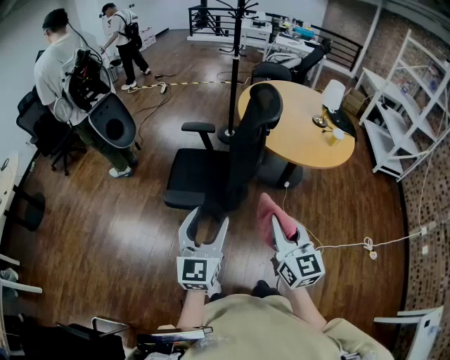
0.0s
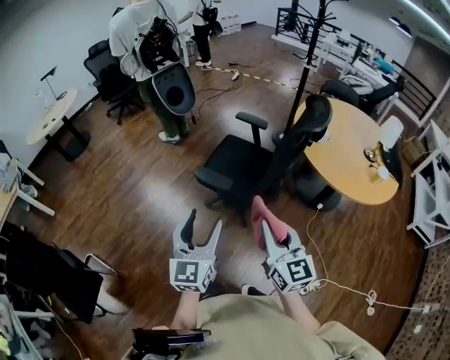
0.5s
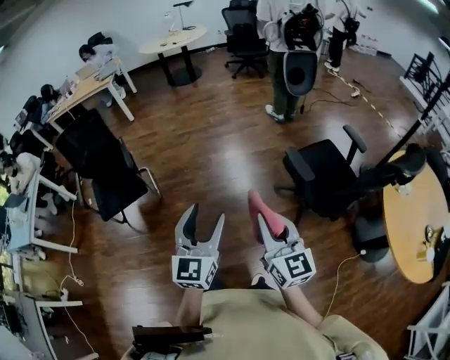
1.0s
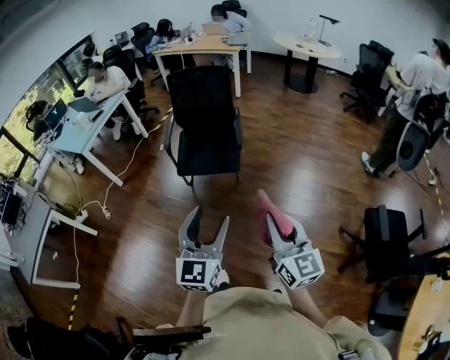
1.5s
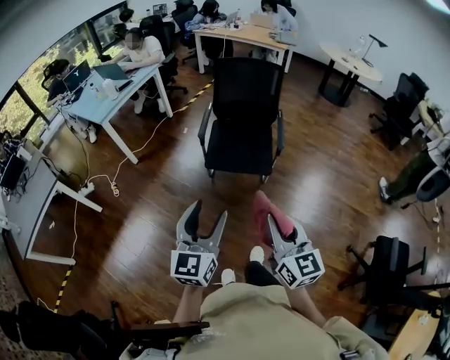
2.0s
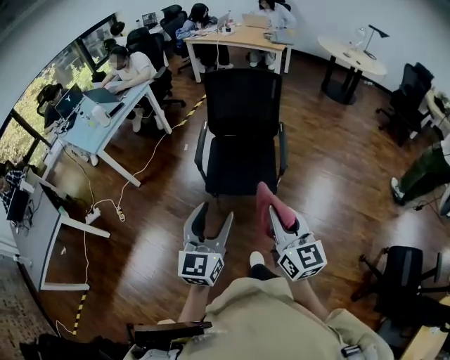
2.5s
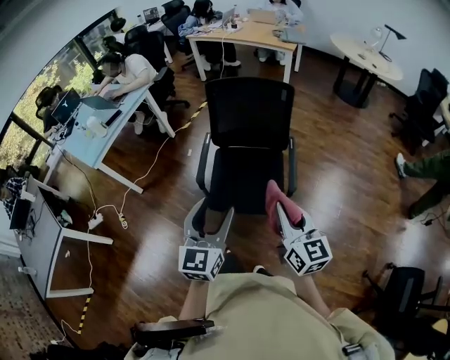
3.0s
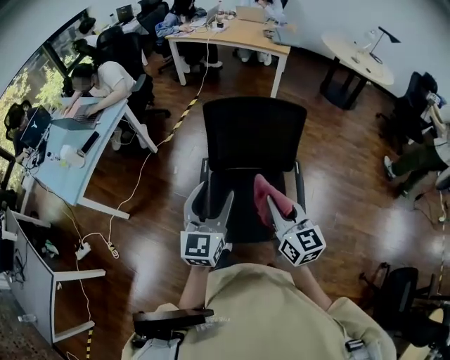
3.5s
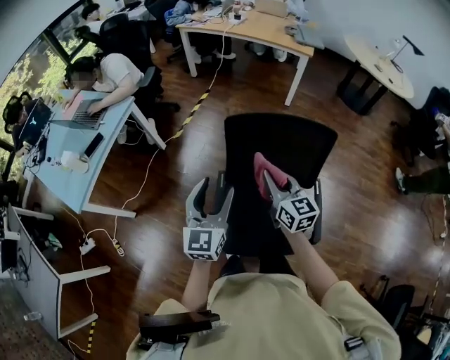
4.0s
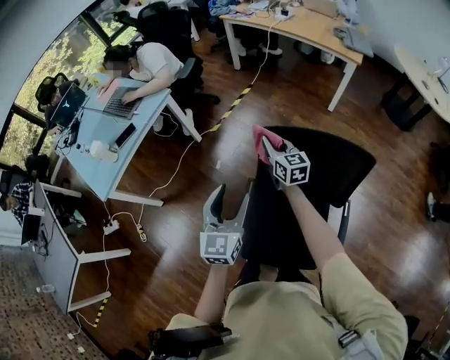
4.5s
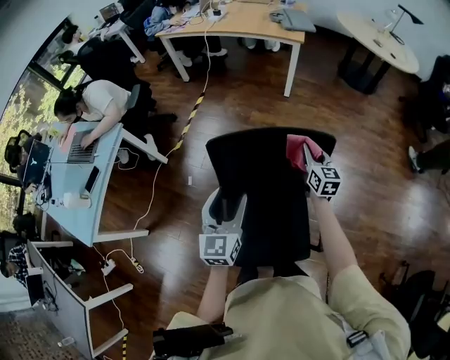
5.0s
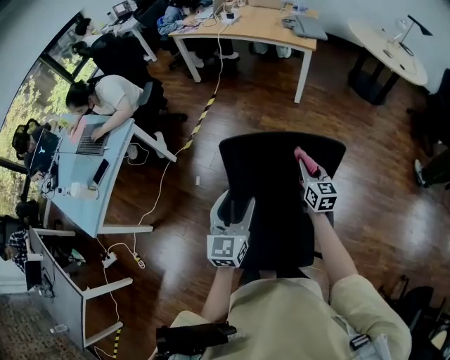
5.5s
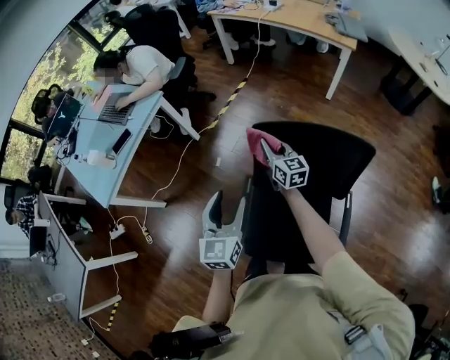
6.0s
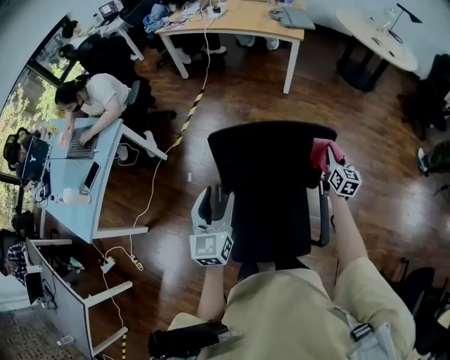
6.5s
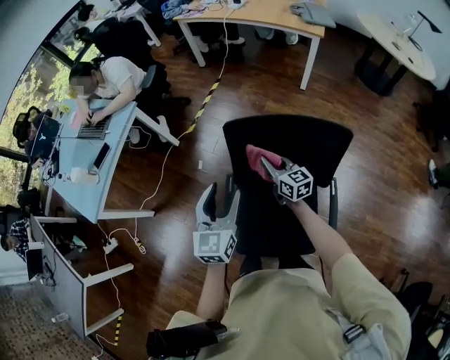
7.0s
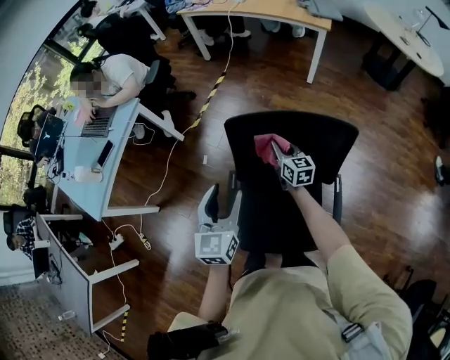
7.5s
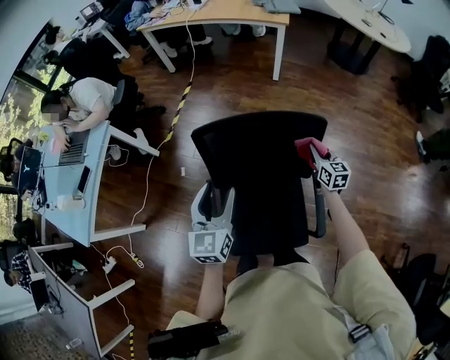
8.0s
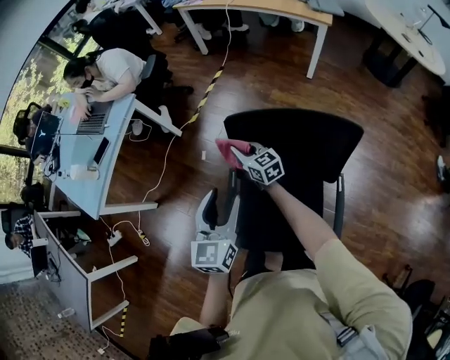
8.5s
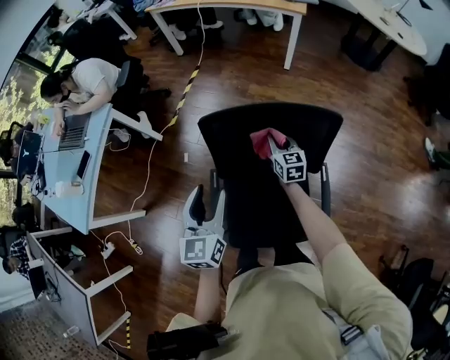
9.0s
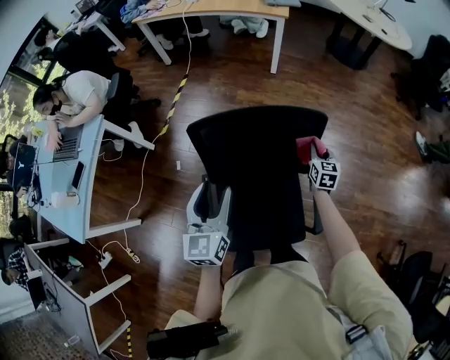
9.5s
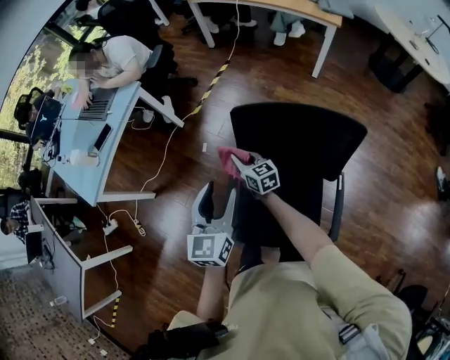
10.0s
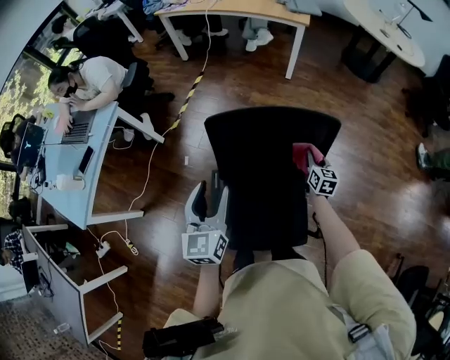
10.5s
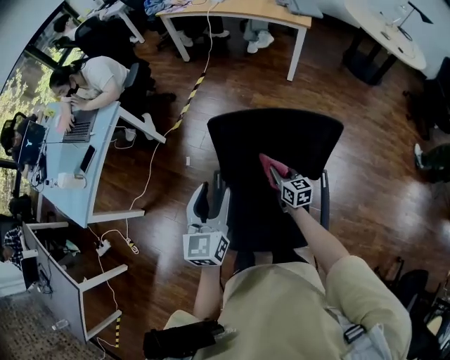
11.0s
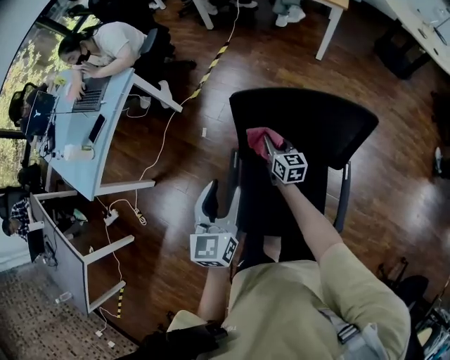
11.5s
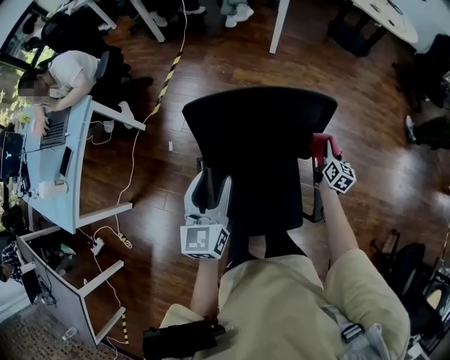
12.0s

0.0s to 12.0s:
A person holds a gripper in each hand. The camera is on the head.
0.0s to 2.0s: The two grippers travel together, about 90 cm. The left gripper swivels about 100 degrees, while the right gripper rotates some 100 degrees.
2.0s to 4.0s: The pair of grippers is taken forward, about 70 cm.
4.0s to 6.0s: The left gripper goes about 5 cm downward, and reaches roughly 10 cm to the right, then returns. The right gripper moves left and right over roughly 30 cm, changing direction 2 times.
6.0s to 8.0s: The left gripper goes some 10 cm to the right. Meanwhile the right gripper goes left and right, approximately 40 cm each way, reversing 2 times, and rotates about 30 degrees.
8.0s to 10.0s: The left gripper shifts by approximately 10 cm. Meanwhile the right gripper moves roughly 40 cm, and turns by approximately 40 degrees.
10.0s to 12.0s: The right gripper changes place by approximately 50 cm, and changes its angle by roughly 60 degrees; the left gripper ends up roughly 10 cm from where it was.

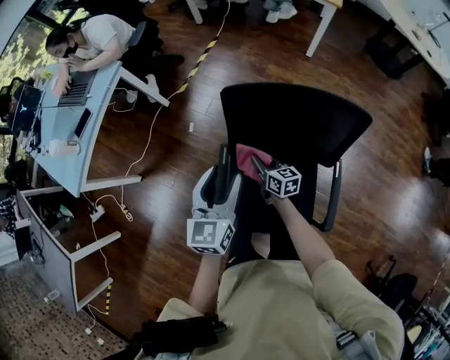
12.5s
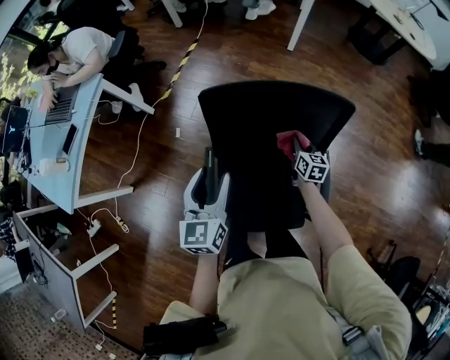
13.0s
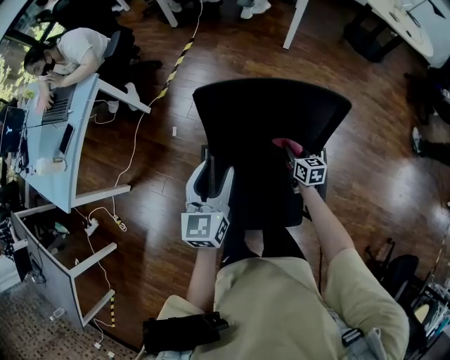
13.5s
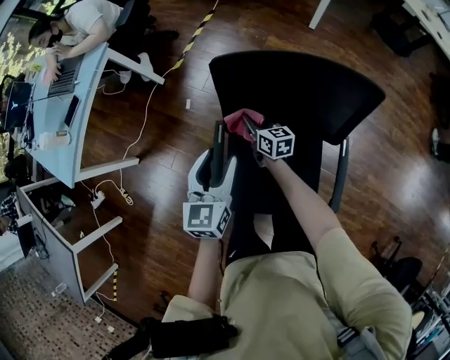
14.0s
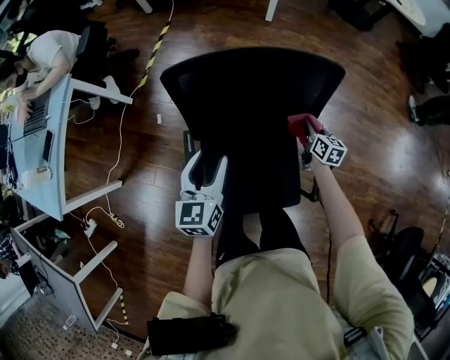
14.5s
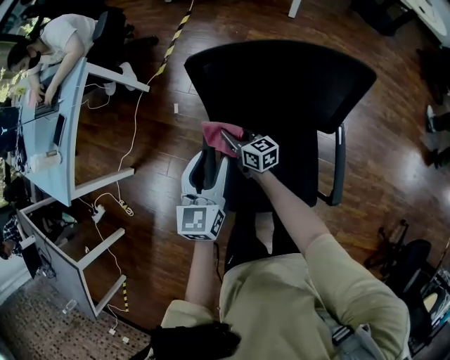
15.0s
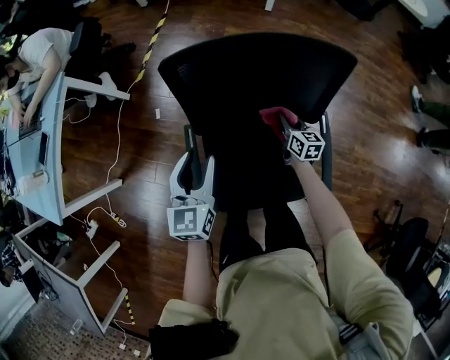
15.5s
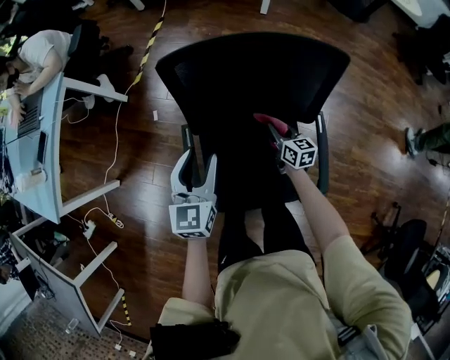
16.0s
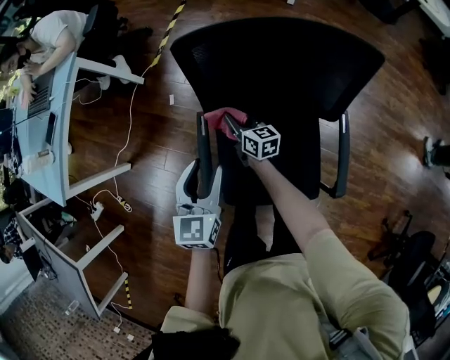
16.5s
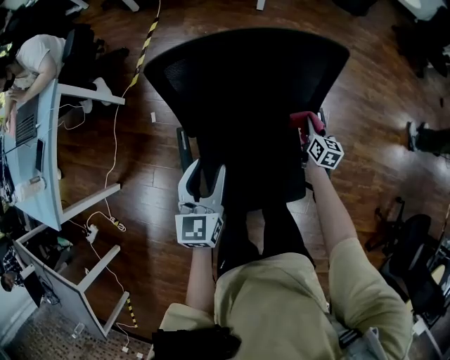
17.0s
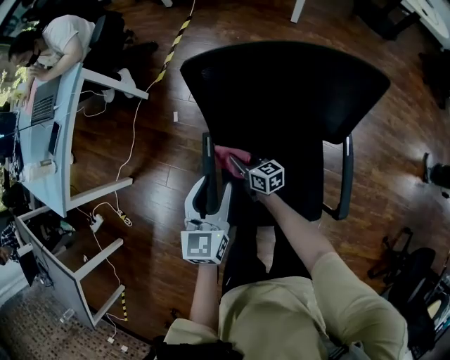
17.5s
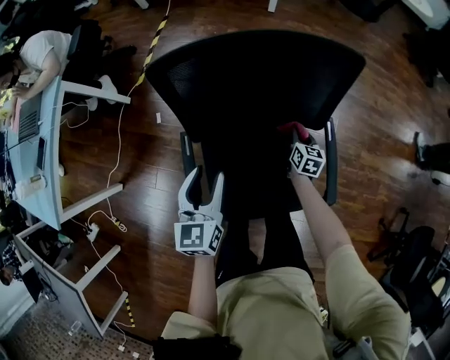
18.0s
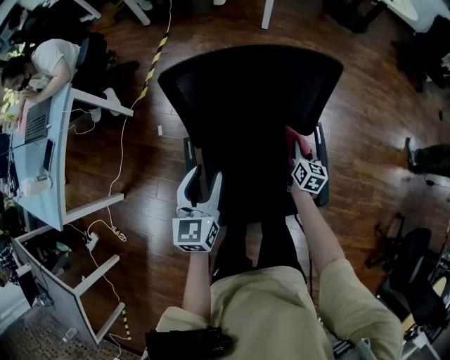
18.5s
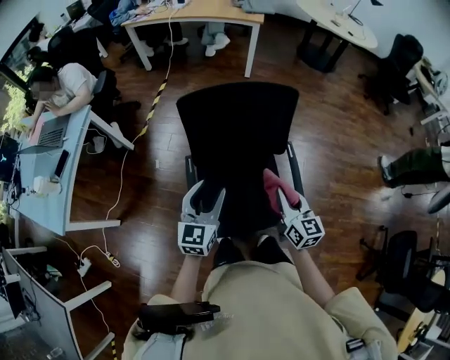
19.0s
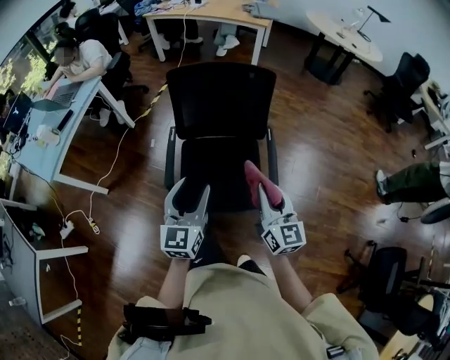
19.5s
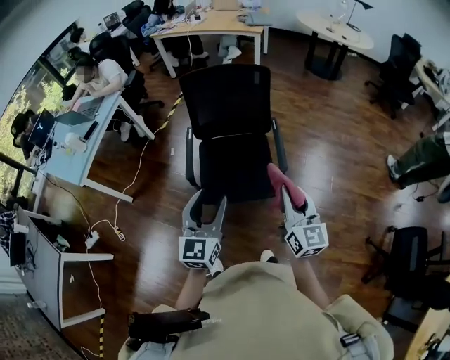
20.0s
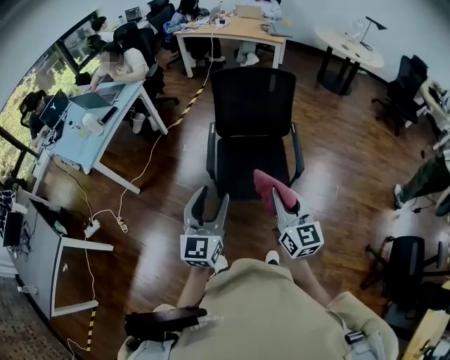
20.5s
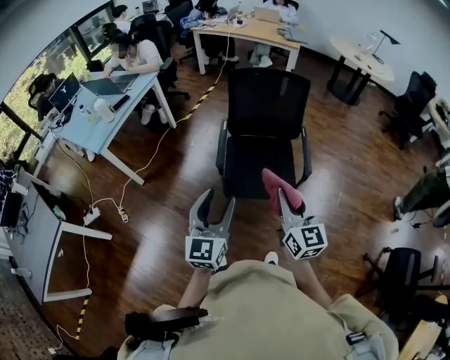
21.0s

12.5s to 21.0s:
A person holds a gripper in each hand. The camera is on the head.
12.5s to 14.5s: The right gripper moves left and right over roughly 35 cm, changing direction 2 times, and rotates approximately 30 degrees. Meanwhile the left gripper goes some 10 cm downward and to the right.
14.5s to 16.5s: The left gripper travels to the left by roughly 5 cm. The right gripper swings left and right, some 40 cm each way, with 2 reversals, and rotates approximately 30 degrees.
16.5s to 19.0s: The right gripper moves roughly 40 cm, and rotates about 30 degrees, while the left gripper moves upward, roughly 15 cm, and swivels some 20 degrees.
19.0s to 21.0s: The right gripper shifts roughly 35 cm backward and upward, while the left gripper moves backward, roughly 40 cm, and swivels roughly 20 degrees.

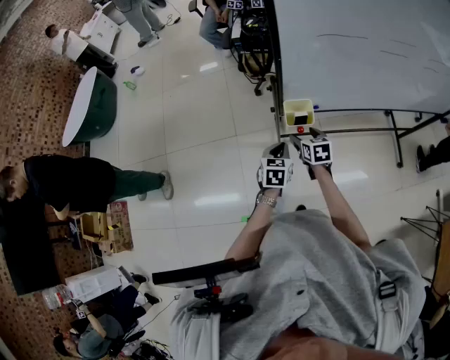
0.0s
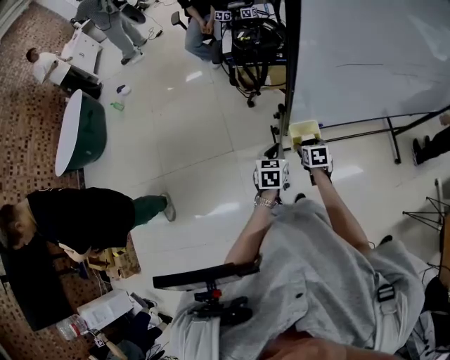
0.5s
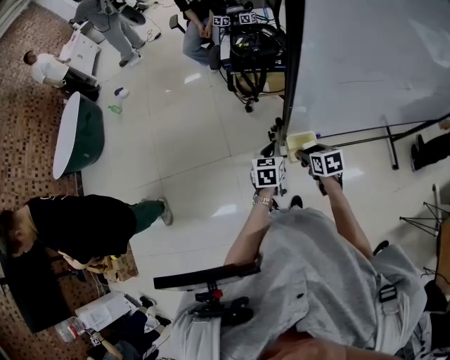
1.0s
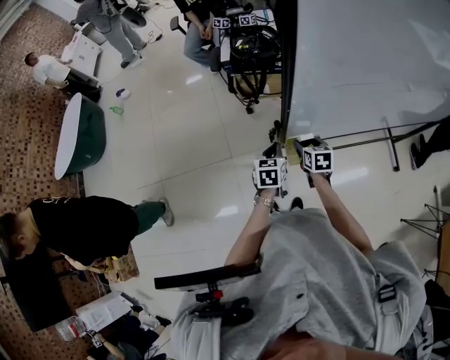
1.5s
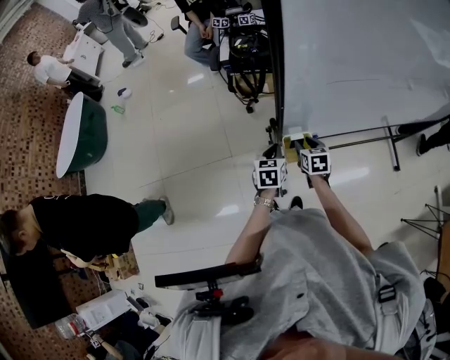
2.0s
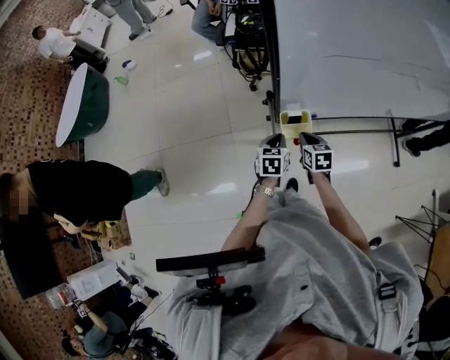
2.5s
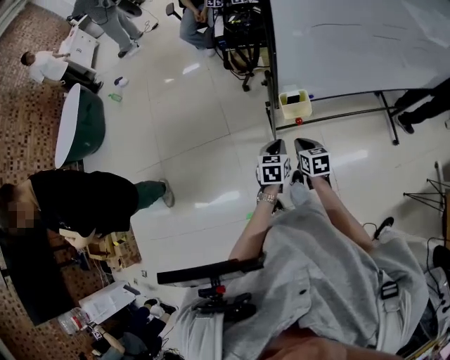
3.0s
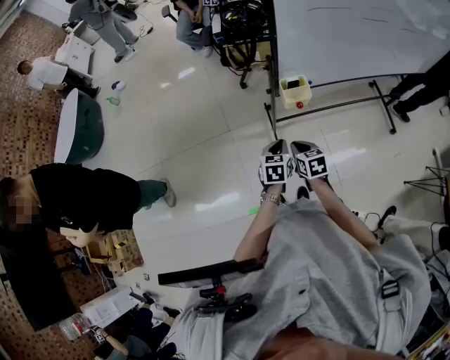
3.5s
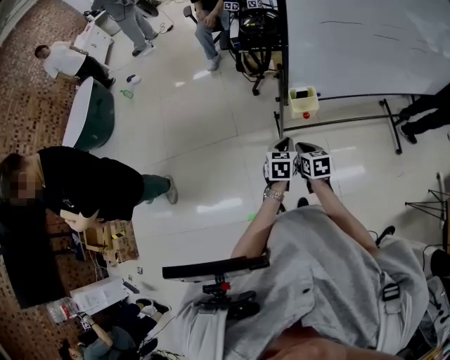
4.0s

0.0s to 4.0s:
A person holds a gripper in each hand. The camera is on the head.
0.0s to 2.0s: Both grippers travel together forward, about 15 cm. The right gripper closes up.
2.0s to 4.0s: Both grippers move backward, some 20 cm. The right gripper closes its fingers.

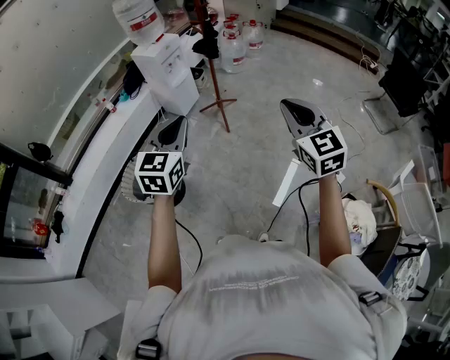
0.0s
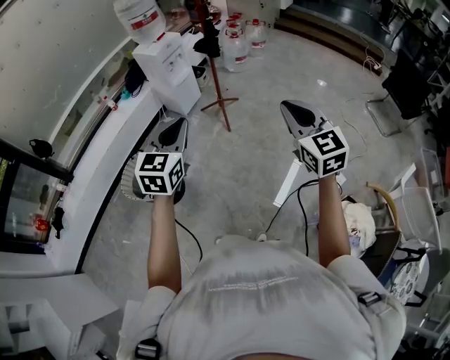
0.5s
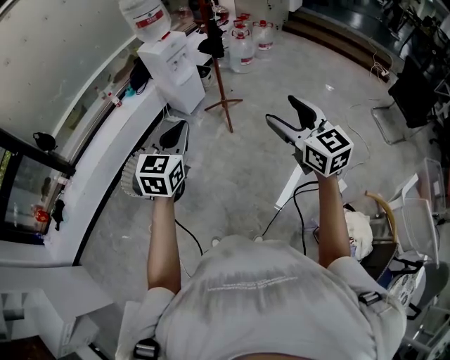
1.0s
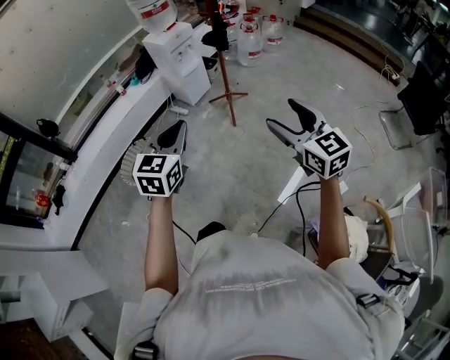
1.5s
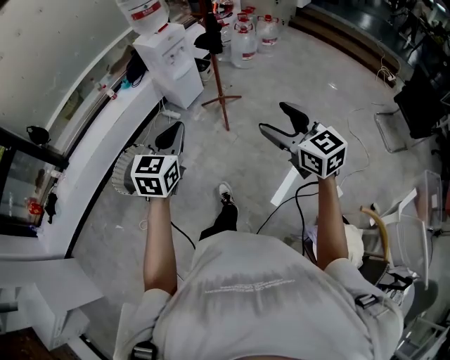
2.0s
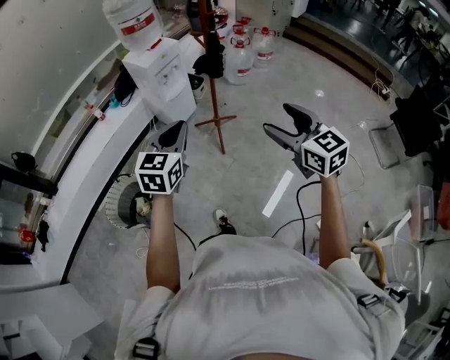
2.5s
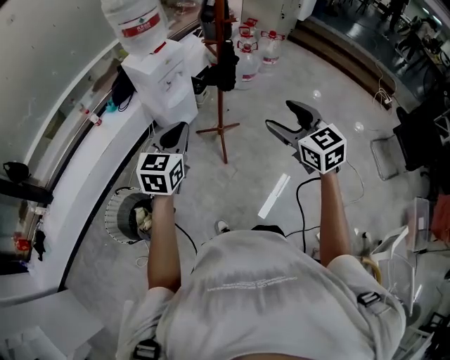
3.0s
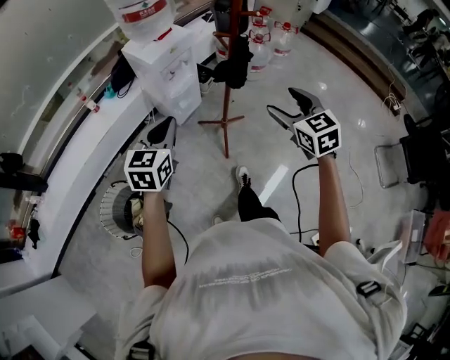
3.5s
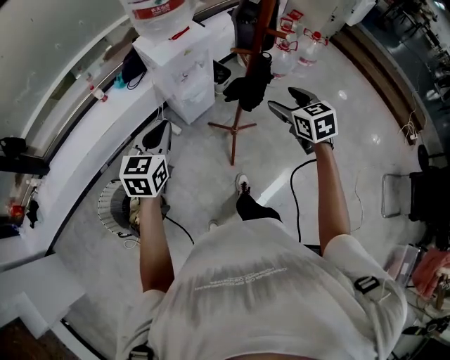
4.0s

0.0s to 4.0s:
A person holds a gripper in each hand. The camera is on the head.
0.0s to 2.0s: The right gripper heads forward and downward, covering approximately 10 cm, swivels roughly 30 degrees, and opens up. The left gripper shifts some 10 cm to the right and downward.
2.0s to 4.0s: The pair of grippers is taken forward, roughly 60 cm. The right gripper changes its angle by approximately 20 degrees.
